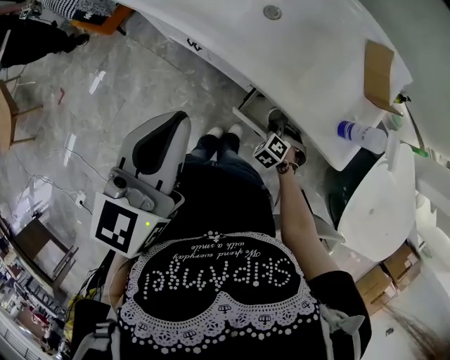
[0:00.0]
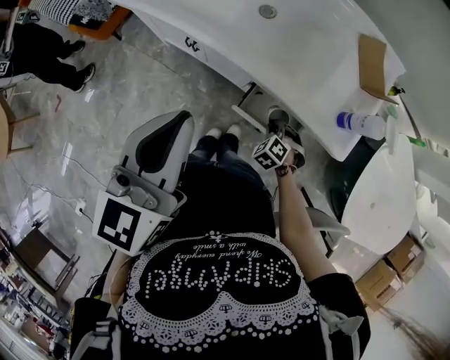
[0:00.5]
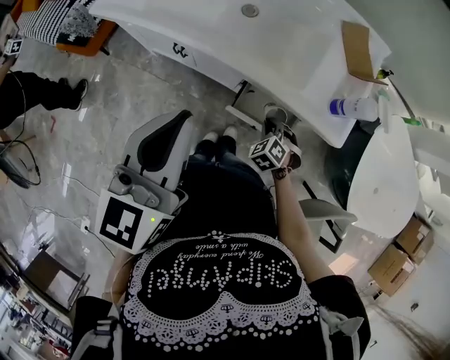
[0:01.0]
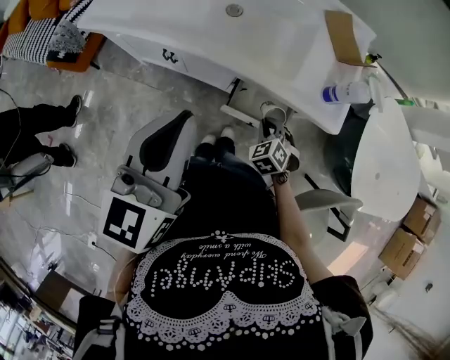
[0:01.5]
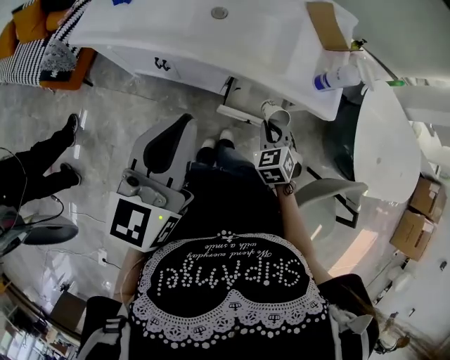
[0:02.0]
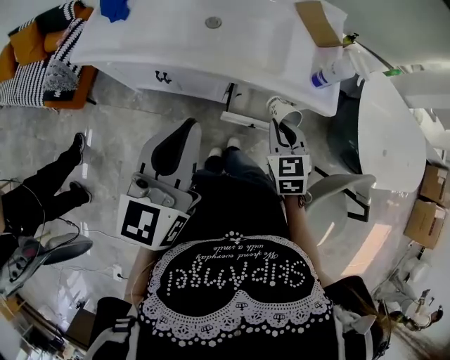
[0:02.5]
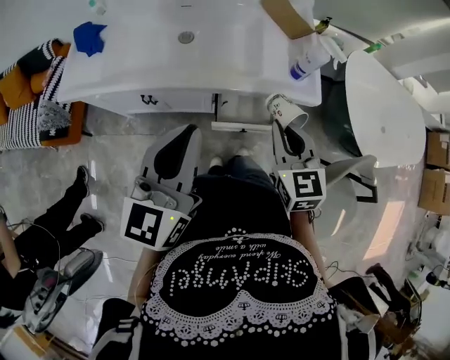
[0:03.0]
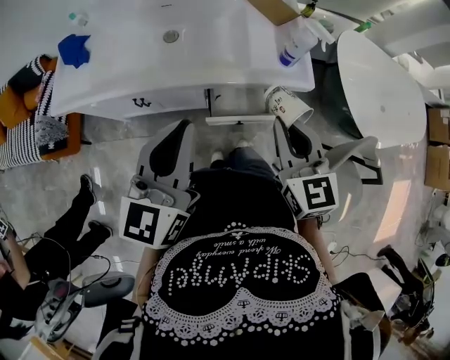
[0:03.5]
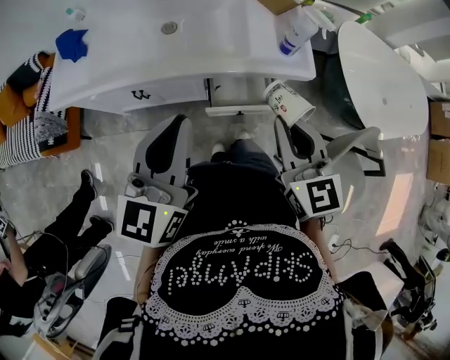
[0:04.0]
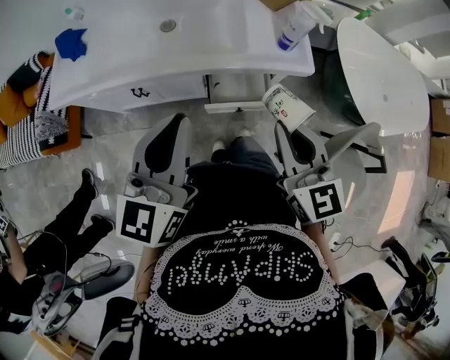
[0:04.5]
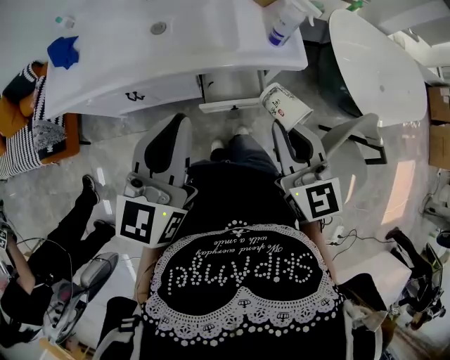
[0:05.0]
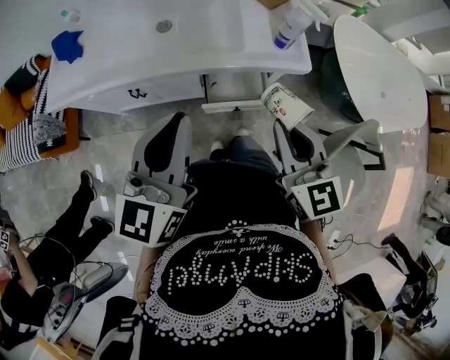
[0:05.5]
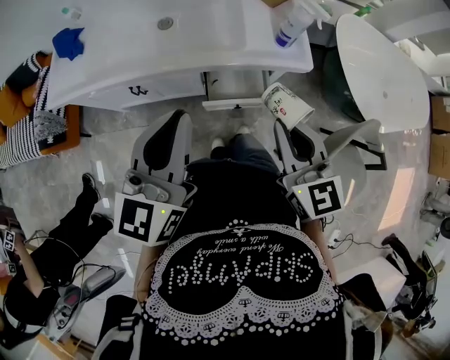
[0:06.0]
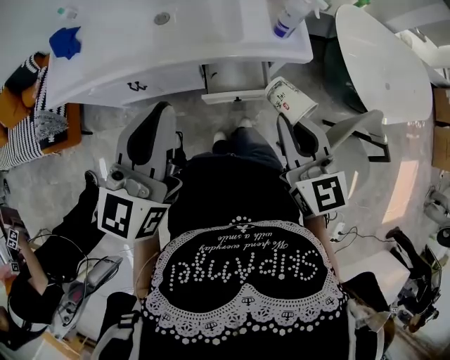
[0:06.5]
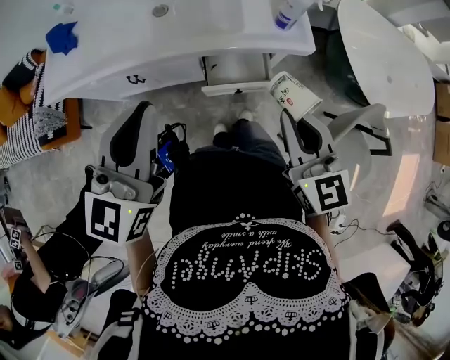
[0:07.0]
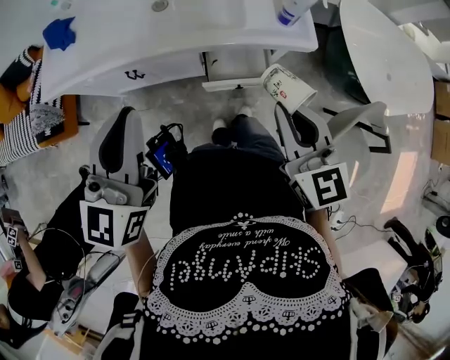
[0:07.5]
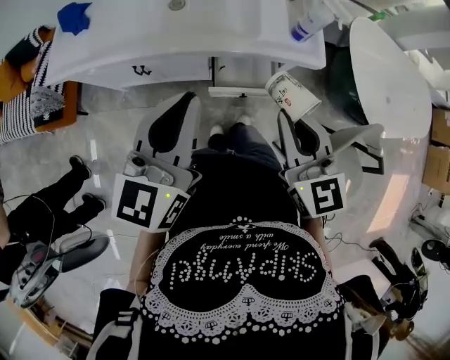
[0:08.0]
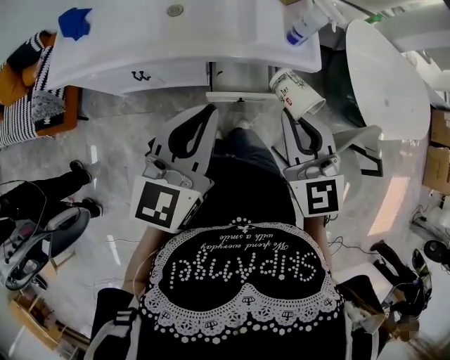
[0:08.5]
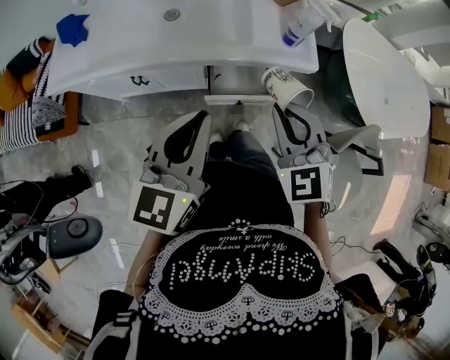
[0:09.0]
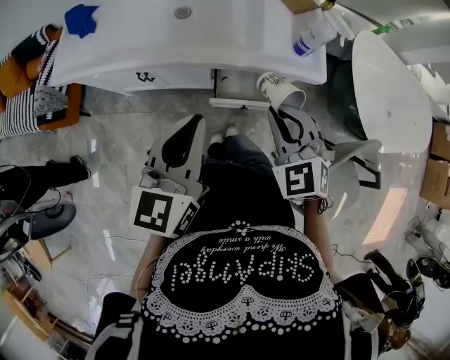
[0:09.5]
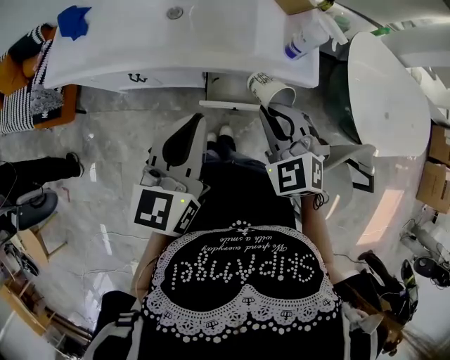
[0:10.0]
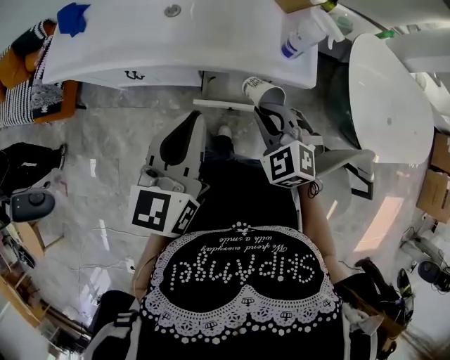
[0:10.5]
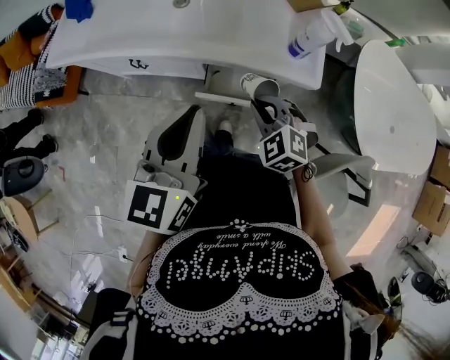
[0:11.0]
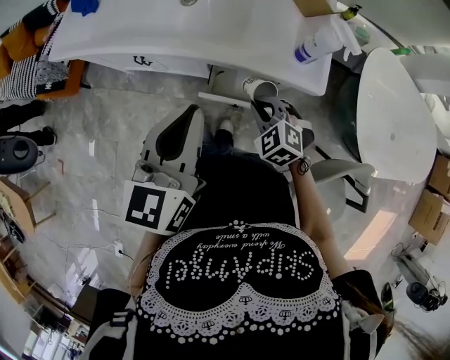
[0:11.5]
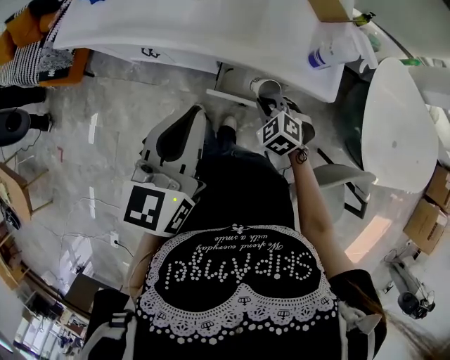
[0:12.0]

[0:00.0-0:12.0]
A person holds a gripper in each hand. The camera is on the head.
0:00.0 to 0:02.0: The right gripper is displaced upward by some 15 cm, and changes its angle by approximately 40 degrees.
0:02.0 to 0:04.0: The right gripper shifts approximately 25 cm upward, and tips its fingers upward by roughly 30 degrees.
0:04.0 to 0:06.0: There are only small adjustments of the grippers.
0:08.0 to 0:10.0: The left gripper moves approximately 5 cm. Meanwhile the right gripper moves downward and forward, about 10 cm, and swivels approximately 40 degrees.
0:10.0 to 0:12.0: The right gripper moves downward, roughly 20 cm, and changes its angle by some 30 degrees.

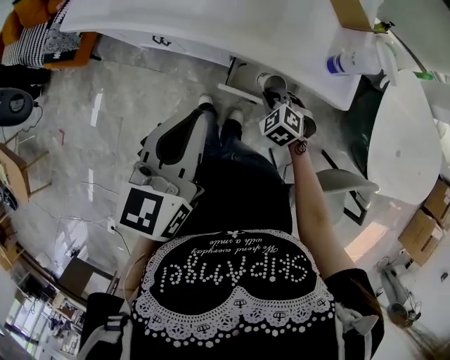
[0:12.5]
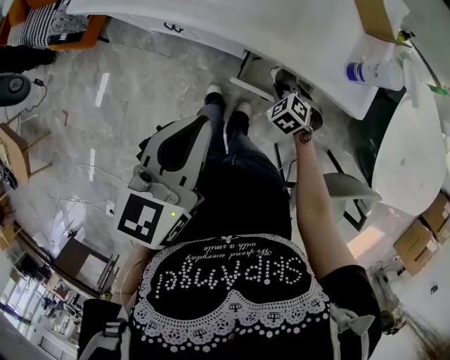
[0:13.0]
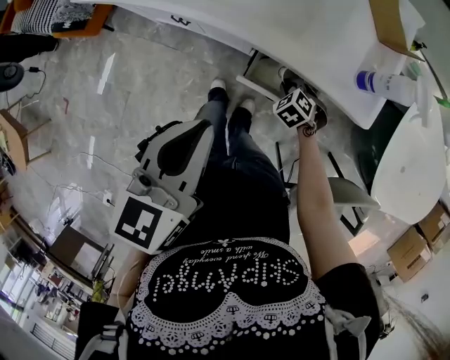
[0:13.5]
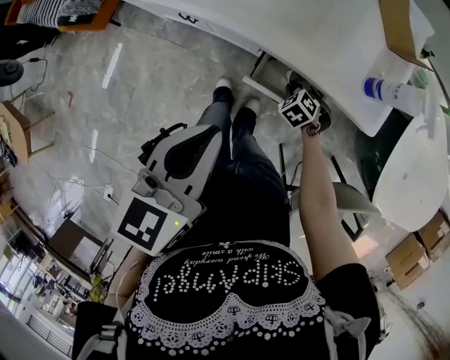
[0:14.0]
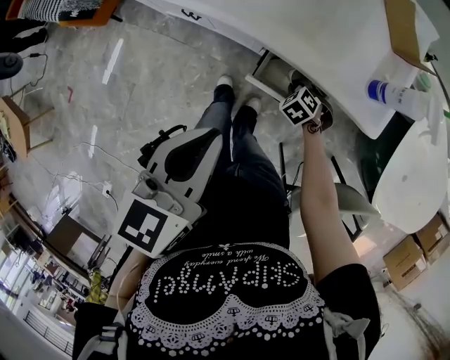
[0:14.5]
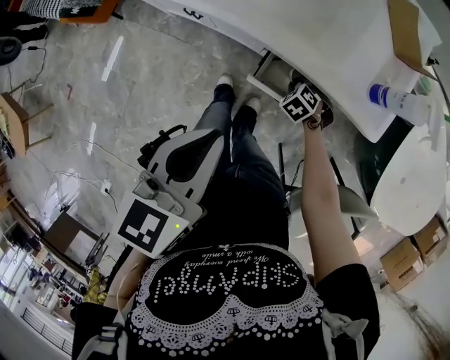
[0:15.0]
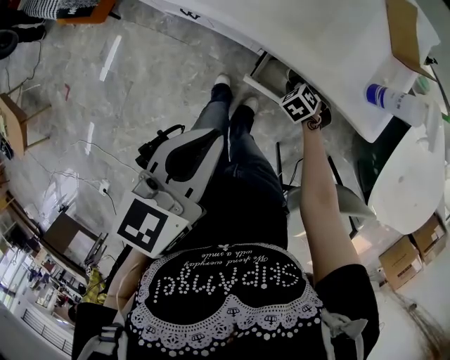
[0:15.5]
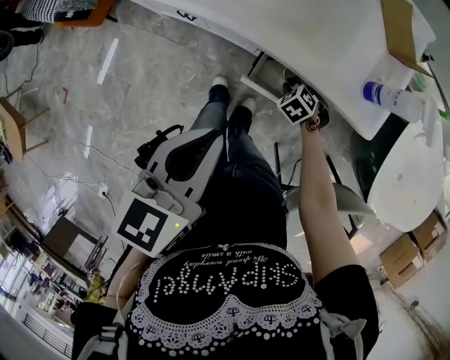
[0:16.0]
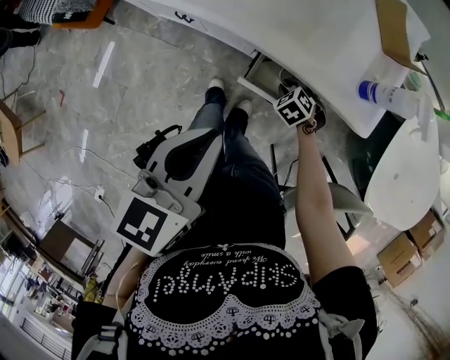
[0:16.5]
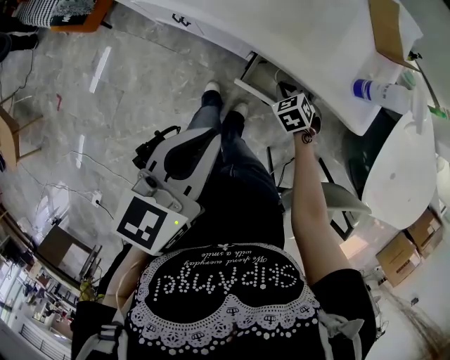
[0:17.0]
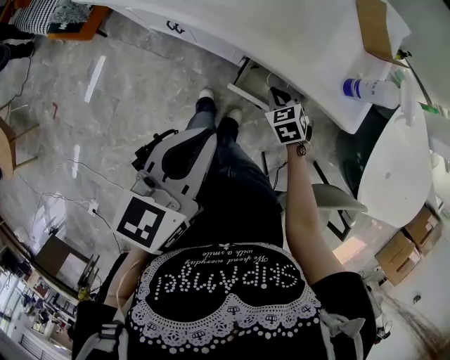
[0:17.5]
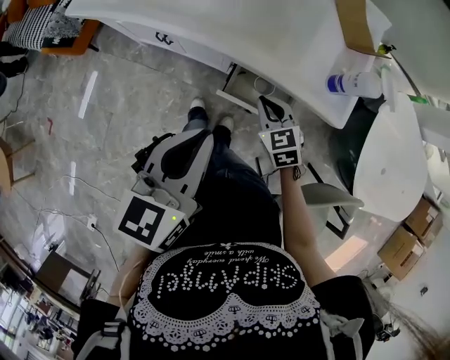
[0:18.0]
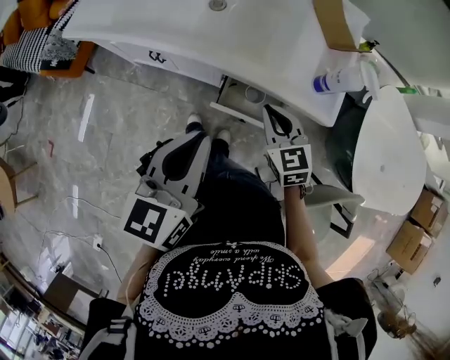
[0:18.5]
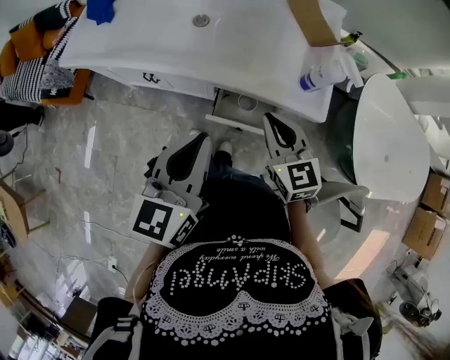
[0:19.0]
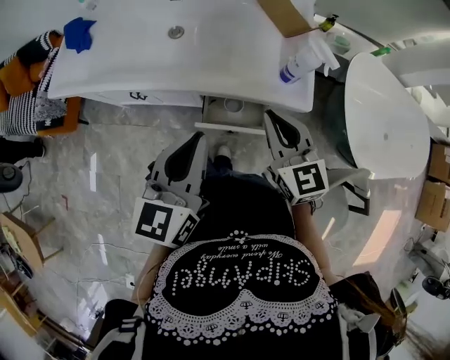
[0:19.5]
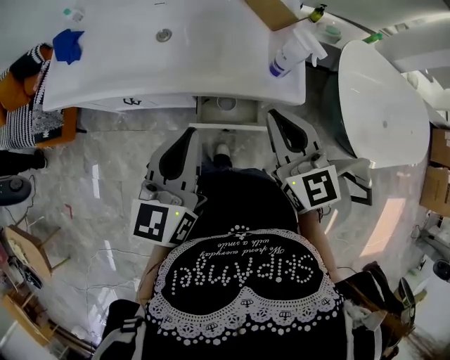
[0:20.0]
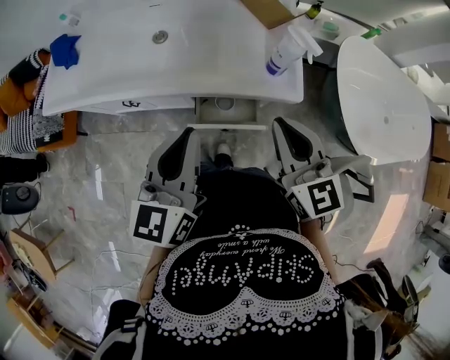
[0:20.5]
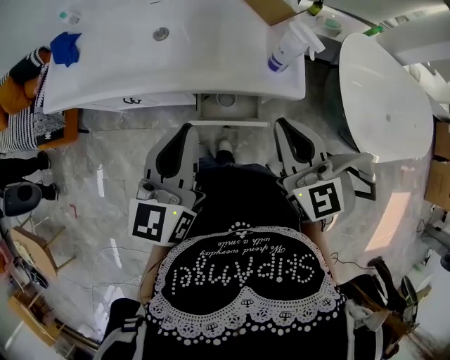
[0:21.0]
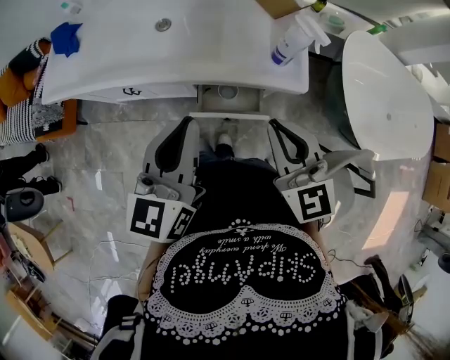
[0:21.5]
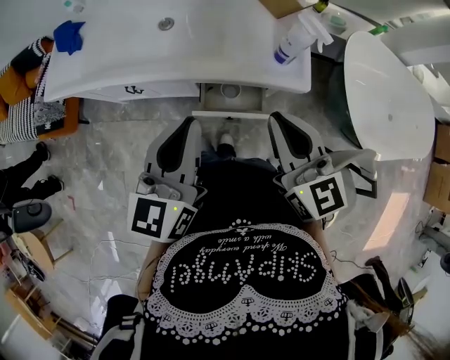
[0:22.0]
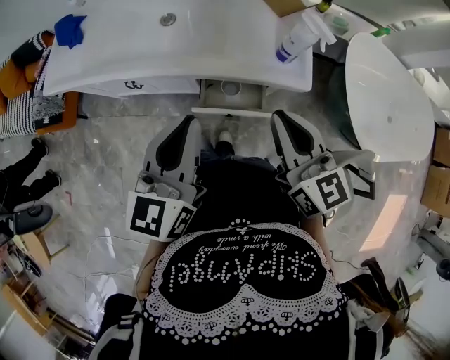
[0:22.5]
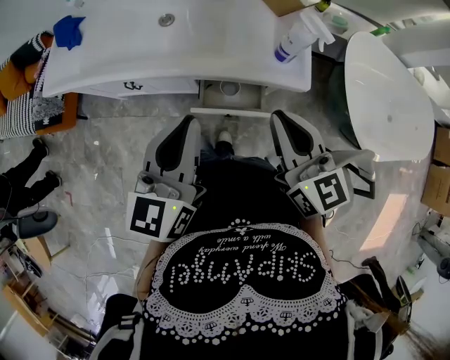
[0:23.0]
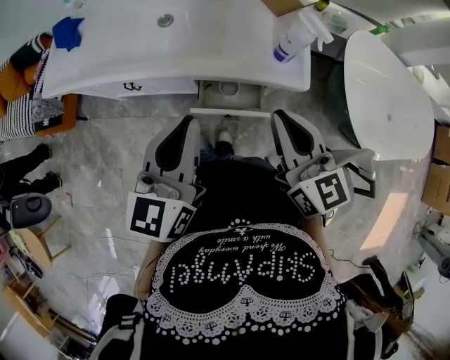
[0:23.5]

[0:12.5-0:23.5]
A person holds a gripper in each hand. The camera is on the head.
0:12.5 to 0:14.5: The right gripper shifts about 10 cm downward.
0:14.5 to 0:16.0: The two grippers keep their place.
0:16.0 to 0:18.0: The right gripper heads upward, covering some 20 cm, and points its fingers approximately 30 degrees further upward.
0:18.0 to 0:20.0: The left gripper changes place by approximately 5 cm. The right gripper shifts approximately 25 cm upward, and changes its angle by about 40 degrees.
0:20.0 to 0:23.5: The grippers make only small movements.

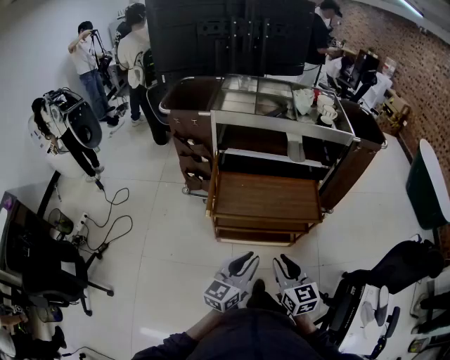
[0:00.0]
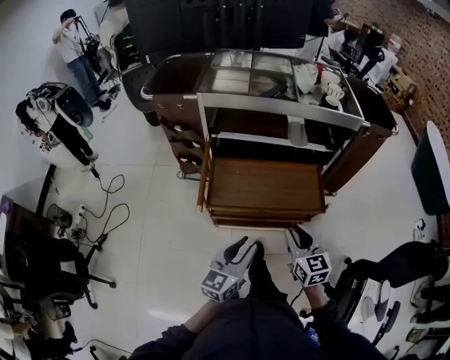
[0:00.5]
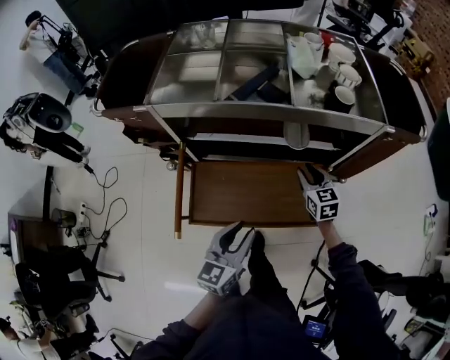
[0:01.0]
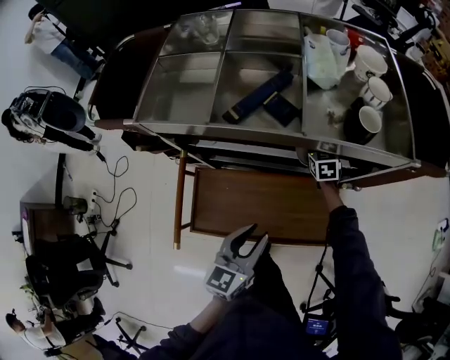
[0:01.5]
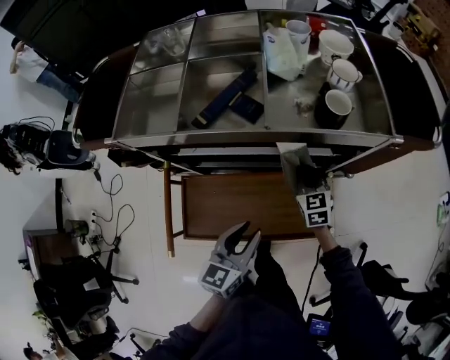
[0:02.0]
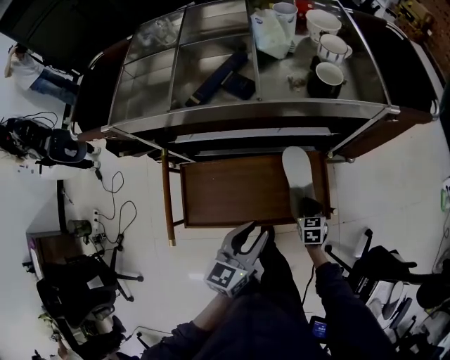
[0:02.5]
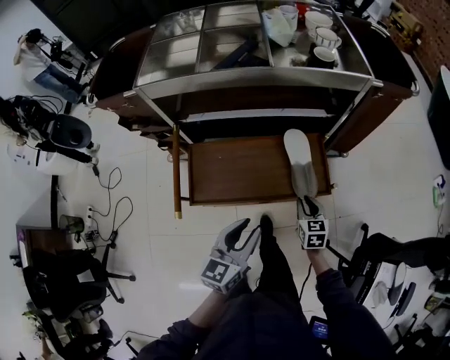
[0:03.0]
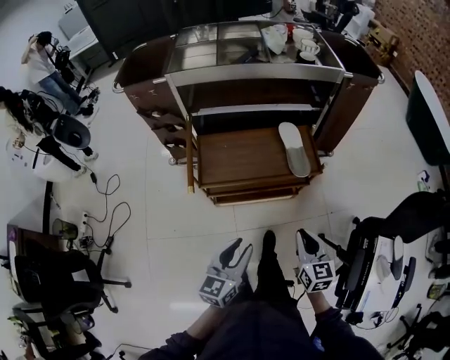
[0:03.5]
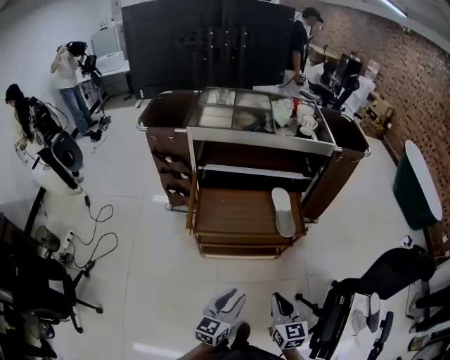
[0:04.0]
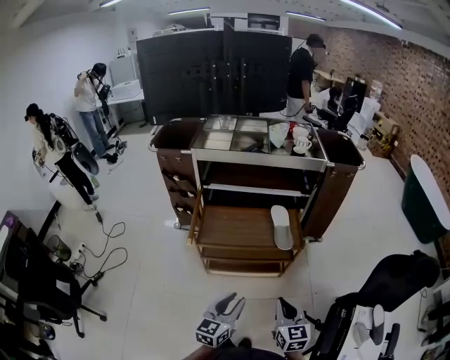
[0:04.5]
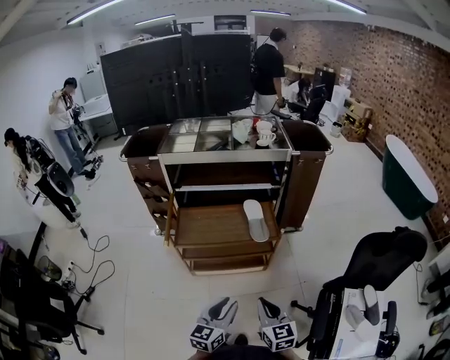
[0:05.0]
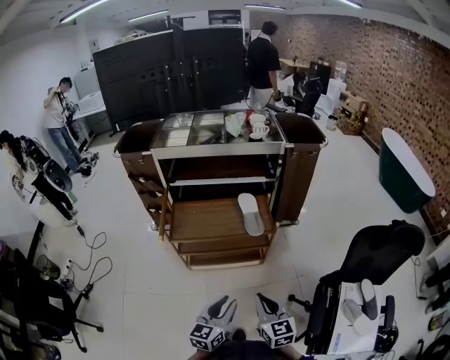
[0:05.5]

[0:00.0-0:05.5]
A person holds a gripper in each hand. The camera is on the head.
0:00.0 to 0:02.0: The two grippers travel together, forward, approximately 50 cm.
0:02.0 to 0:03.5: The pair of grippers is taken backward, approximately 50 cm.
0:03.5 to 0:05.5: The left gripper moves to the right and backward, approximately 20 cm; the right gripper moves backward, to the right and upward, some 15 cm.
